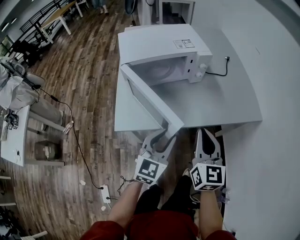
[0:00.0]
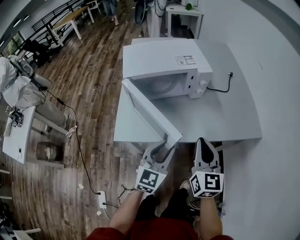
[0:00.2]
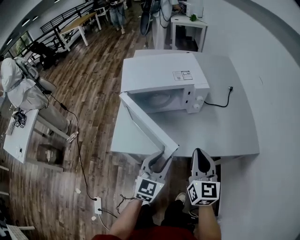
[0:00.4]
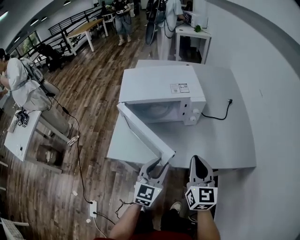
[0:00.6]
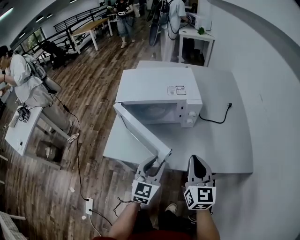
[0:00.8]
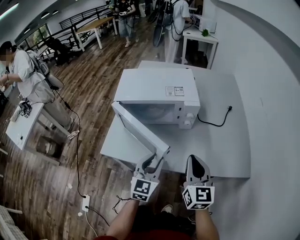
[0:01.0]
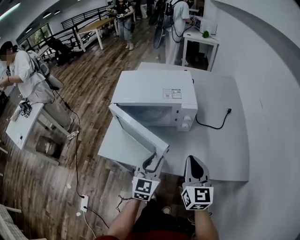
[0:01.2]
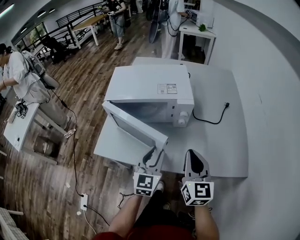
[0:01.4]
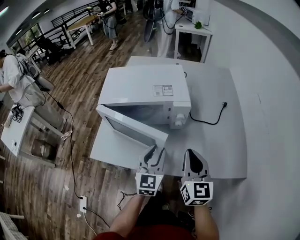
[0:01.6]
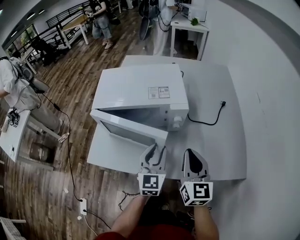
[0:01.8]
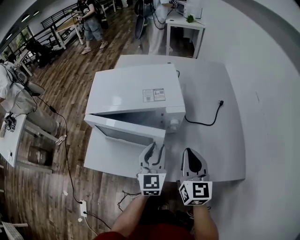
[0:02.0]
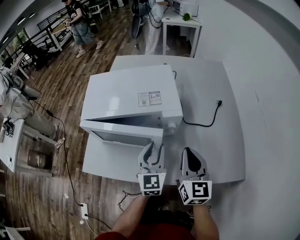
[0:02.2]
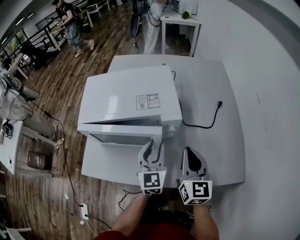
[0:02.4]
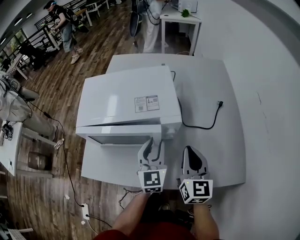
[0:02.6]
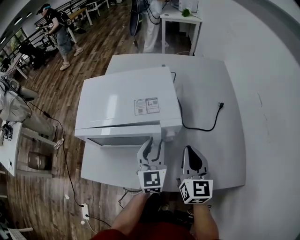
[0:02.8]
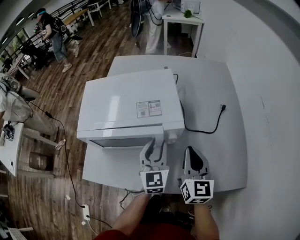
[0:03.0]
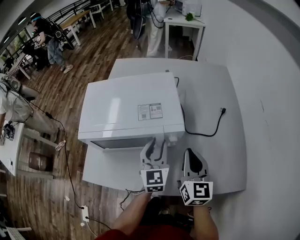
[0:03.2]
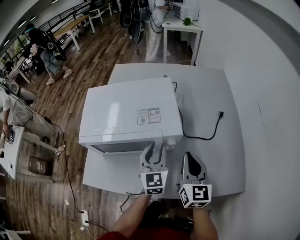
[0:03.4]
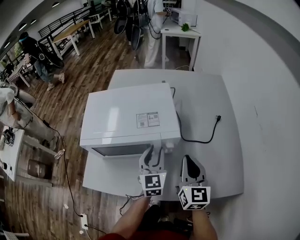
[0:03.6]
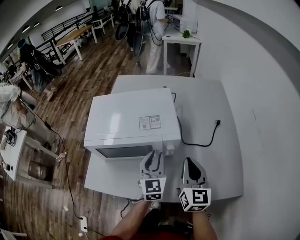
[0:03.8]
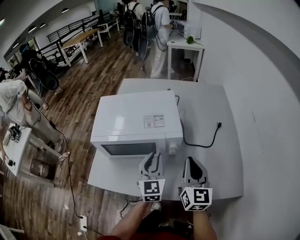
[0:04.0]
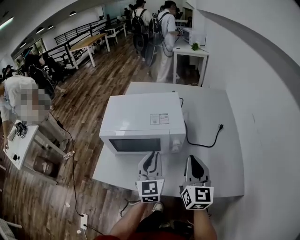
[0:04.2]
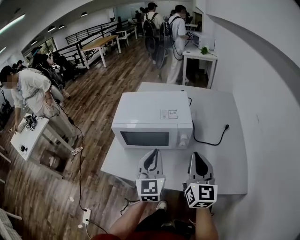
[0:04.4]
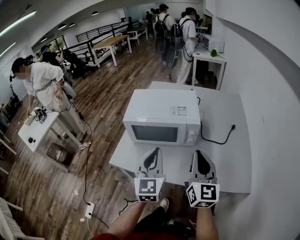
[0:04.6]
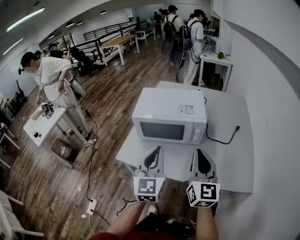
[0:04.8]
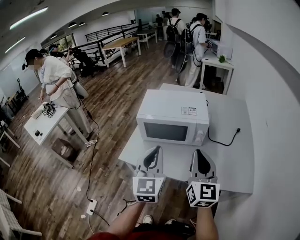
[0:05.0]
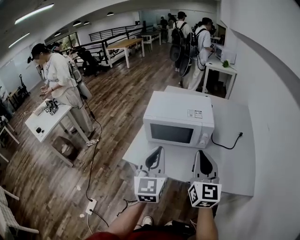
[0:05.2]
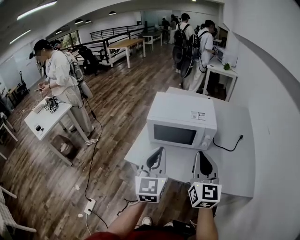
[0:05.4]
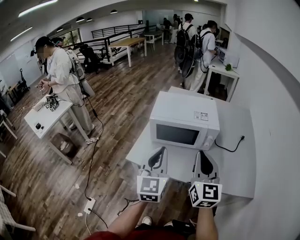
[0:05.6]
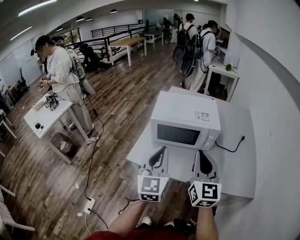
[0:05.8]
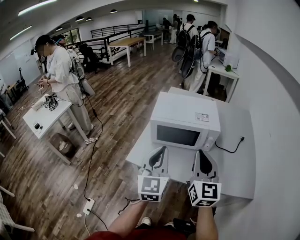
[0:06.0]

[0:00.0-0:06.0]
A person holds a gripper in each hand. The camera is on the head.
0:00.0 to 0:01.6: Both grippers travel together forward and to the right, roughly 20 cm. The left gripper swivels some 30 degrees.
0:01.6 to 0:03.0: Both grippers travel together forward, roughly 15 cm.
0:03.0 to 0:04.4: The left gripper goes some 20 cm backward, upward and to the left, and closes. Meanwhile the right gripper heads backward and upward, covering approximately 15 cm.
0:04.4 to 0:06.0: The left gripper is displaced to the left, backward and upward by roughly 20 cm; the right gripper shifts roughly 15 cm to the left.

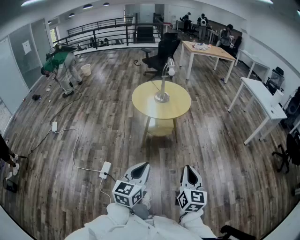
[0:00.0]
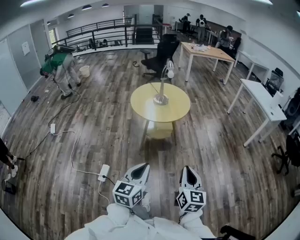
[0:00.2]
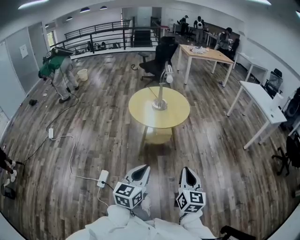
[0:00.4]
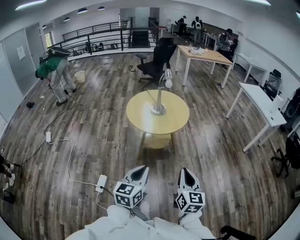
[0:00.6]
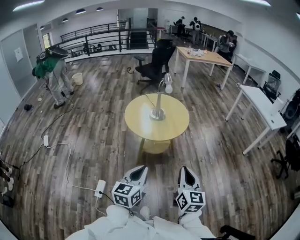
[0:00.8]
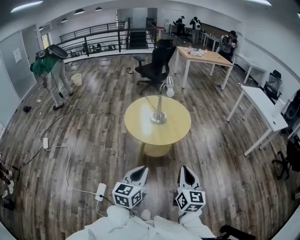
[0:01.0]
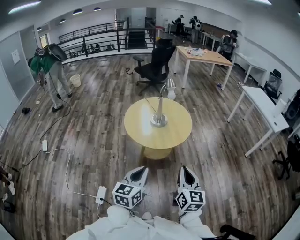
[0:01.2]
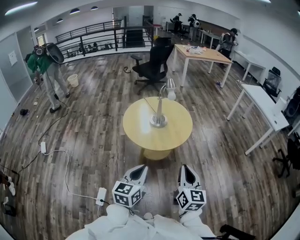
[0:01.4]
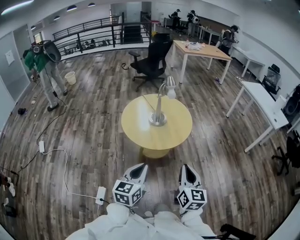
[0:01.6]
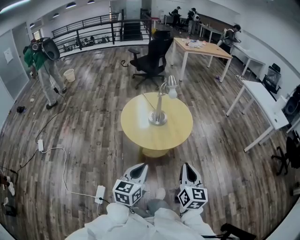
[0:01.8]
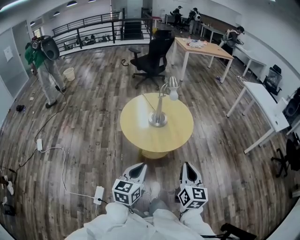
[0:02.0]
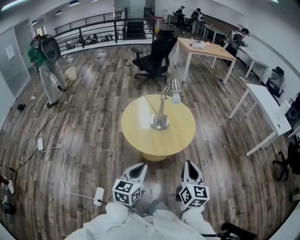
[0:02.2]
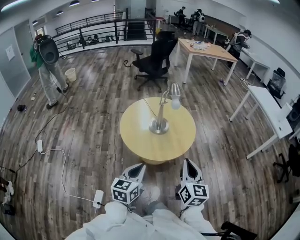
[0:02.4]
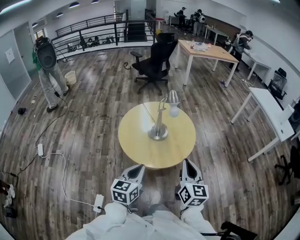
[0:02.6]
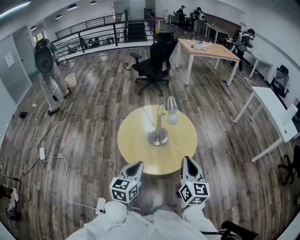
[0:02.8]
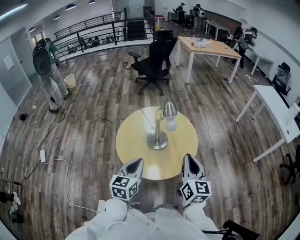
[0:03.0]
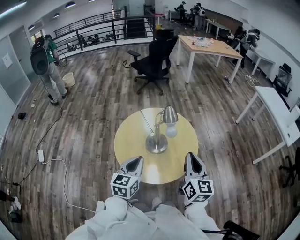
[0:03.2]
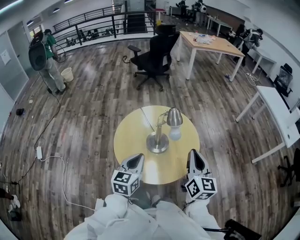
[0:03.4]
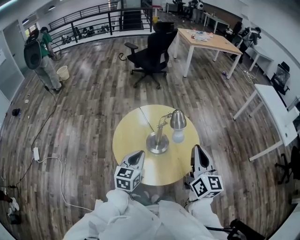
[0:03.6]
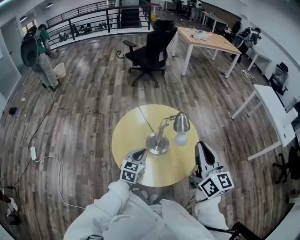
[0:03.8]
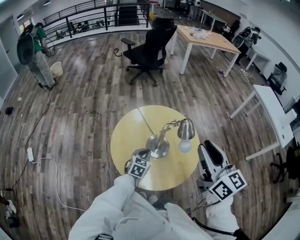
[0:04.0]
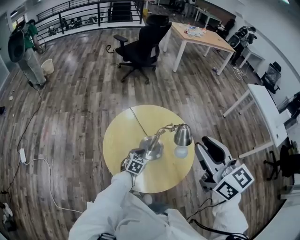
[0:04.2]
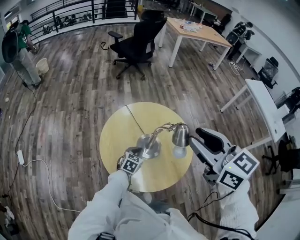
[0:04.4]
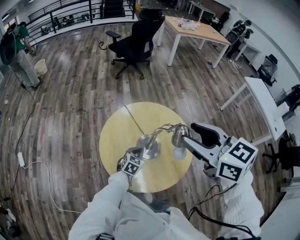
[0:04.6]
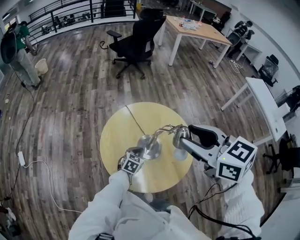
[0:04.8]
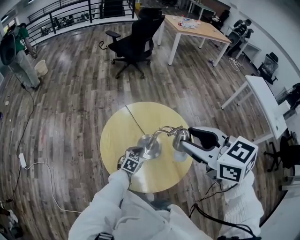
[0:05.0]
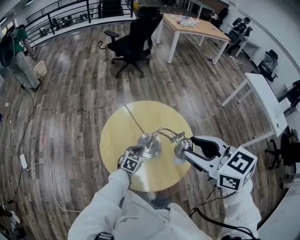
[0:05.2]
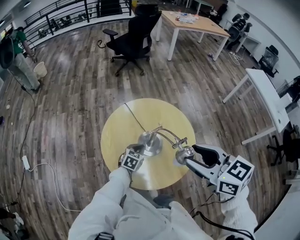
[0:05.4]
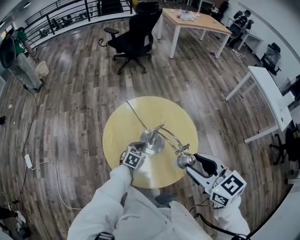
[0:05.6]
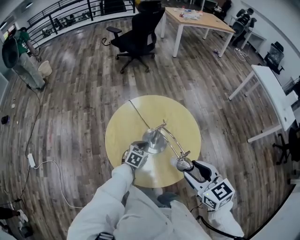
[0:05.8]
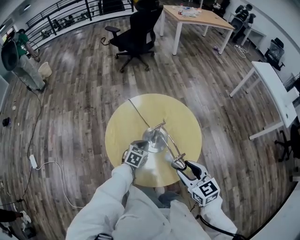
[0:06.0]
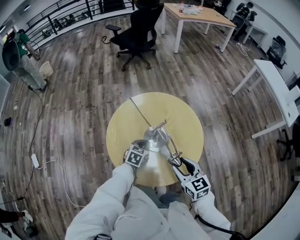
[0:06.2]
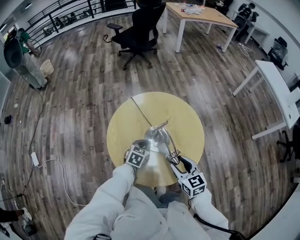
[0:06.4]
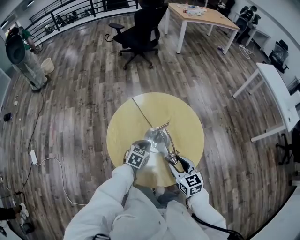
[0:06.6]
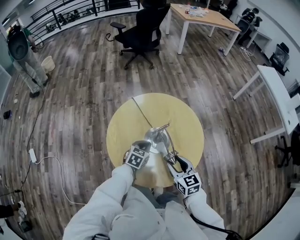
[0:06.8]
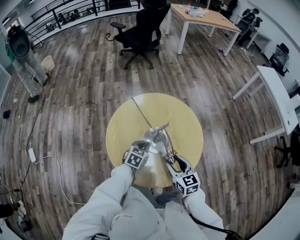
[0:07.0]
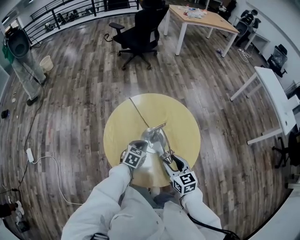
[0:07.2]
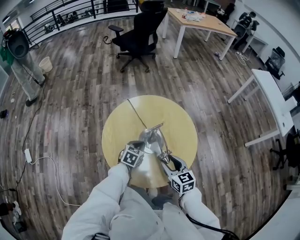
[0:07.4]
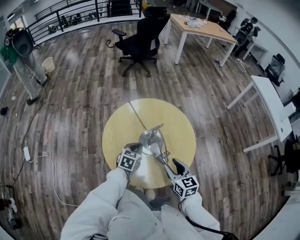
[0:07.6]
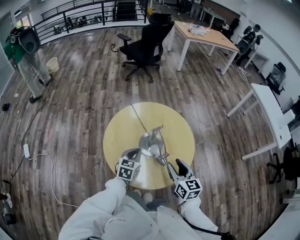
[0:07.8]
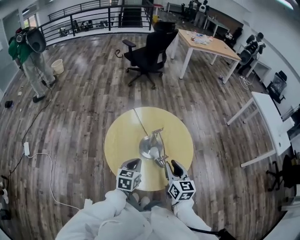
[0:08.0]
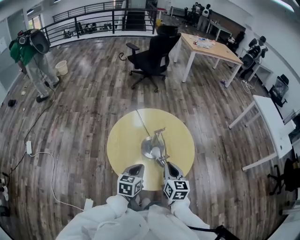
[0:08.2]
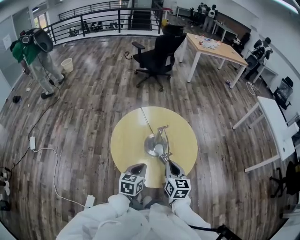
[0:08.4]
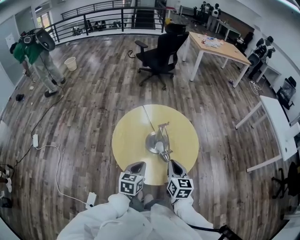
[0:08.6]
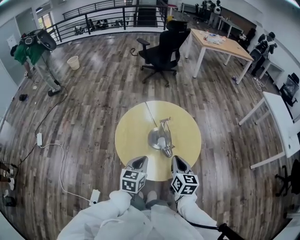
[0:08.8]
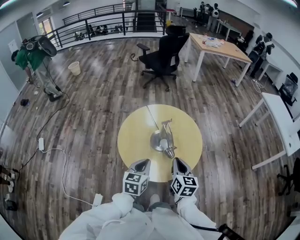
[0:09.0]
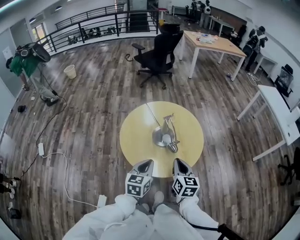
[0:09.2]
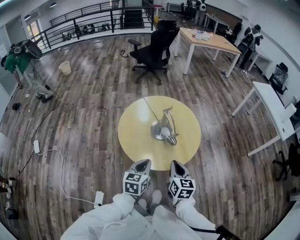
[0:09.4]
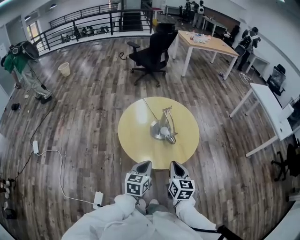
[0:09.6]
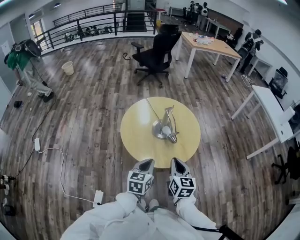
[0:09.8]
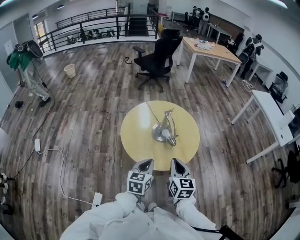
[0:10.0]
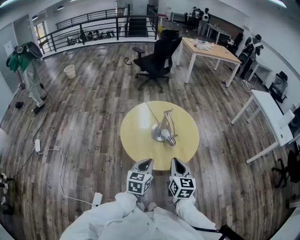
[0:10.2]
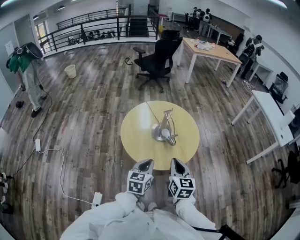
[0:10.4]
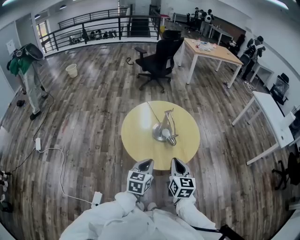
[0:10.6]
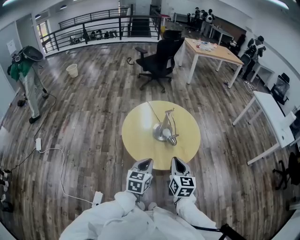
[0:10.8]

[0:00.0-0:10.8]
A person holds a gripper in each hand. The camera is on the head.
0:00.0 to 0:01.6: Both grippers travel together forward, roughly 30 cm.
0:01.6 to 0:03.0: The two grippers go about 30 cm forward.
0:03.0 to 0:04.6: The left gripper heads downward and forward, covering approximately 35 cm, and changes its angle by approximately 30 degrees. Meanwhile the right gripper is displaced forward, upward and to the left by some 25 cm, rotates approximately 40 degrees, and opens its fingers.
0:04.6 to 0:06.2: The right gripper is displaced downward by approximately 30 cm.
0:06.2 to 0:07.8: The left gripper shifts some 10 cm upward and backward.
0:07.8 to 0:09.2: The right gripper travels backward by roughly 10 cm, and closes up. Meanwhile the left gripper goes some 20 cm backward and upward.
0:09.2 to 0:10.8: The grippers both shift backward by roughly 5 cm.

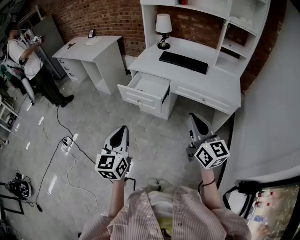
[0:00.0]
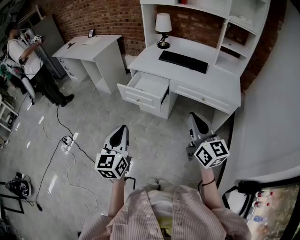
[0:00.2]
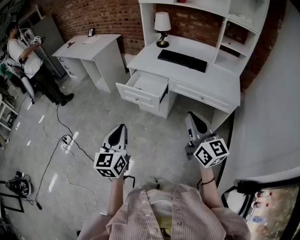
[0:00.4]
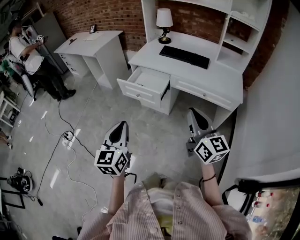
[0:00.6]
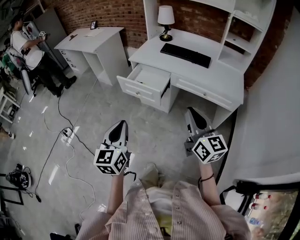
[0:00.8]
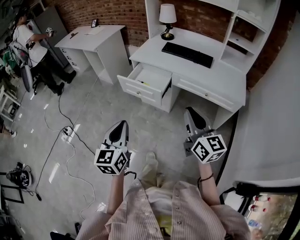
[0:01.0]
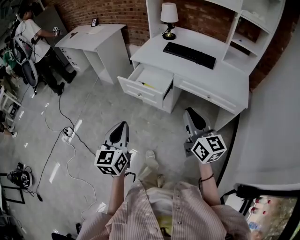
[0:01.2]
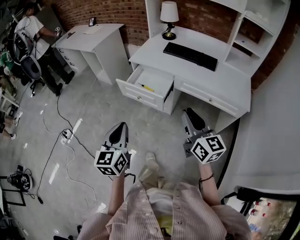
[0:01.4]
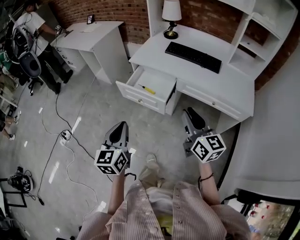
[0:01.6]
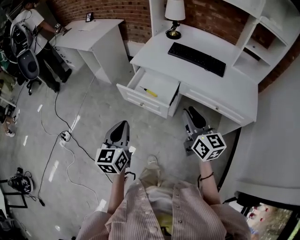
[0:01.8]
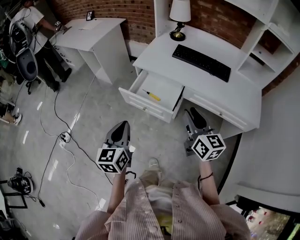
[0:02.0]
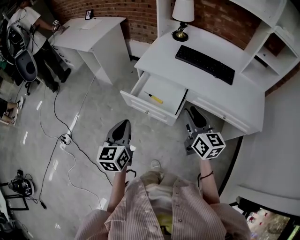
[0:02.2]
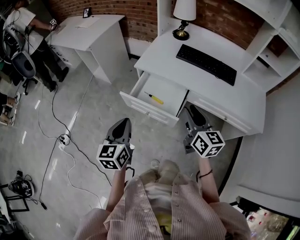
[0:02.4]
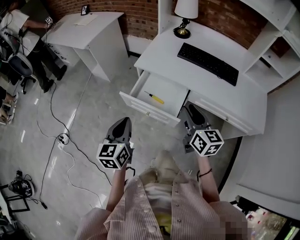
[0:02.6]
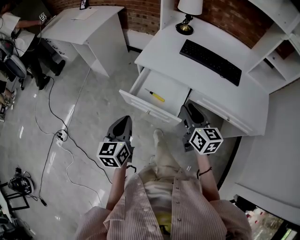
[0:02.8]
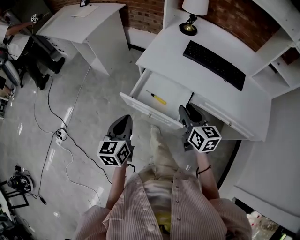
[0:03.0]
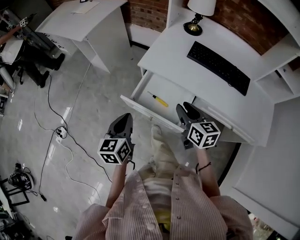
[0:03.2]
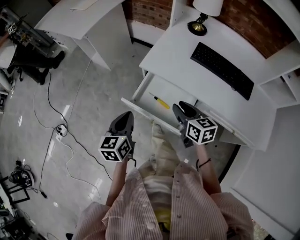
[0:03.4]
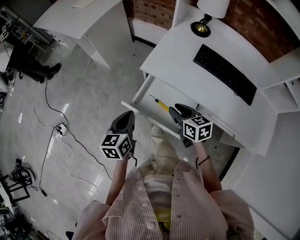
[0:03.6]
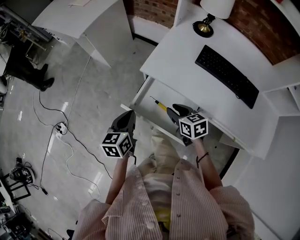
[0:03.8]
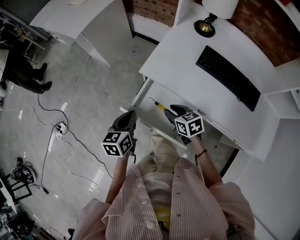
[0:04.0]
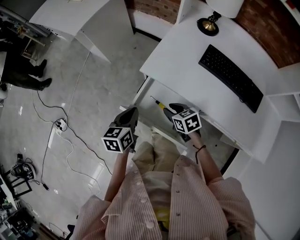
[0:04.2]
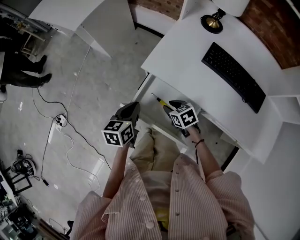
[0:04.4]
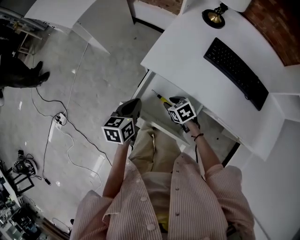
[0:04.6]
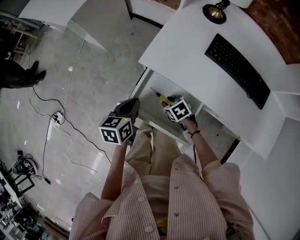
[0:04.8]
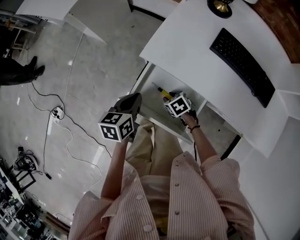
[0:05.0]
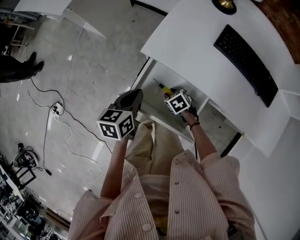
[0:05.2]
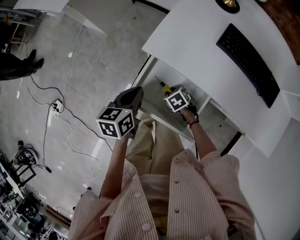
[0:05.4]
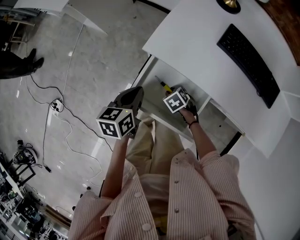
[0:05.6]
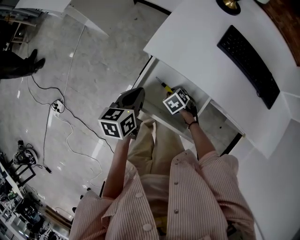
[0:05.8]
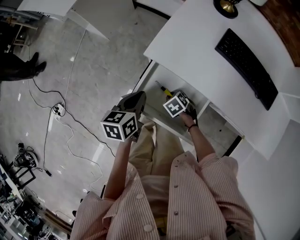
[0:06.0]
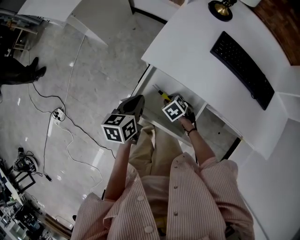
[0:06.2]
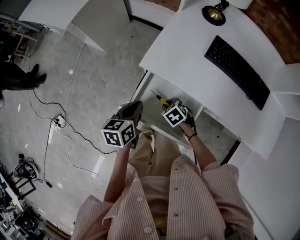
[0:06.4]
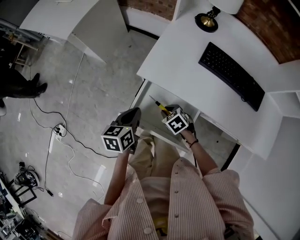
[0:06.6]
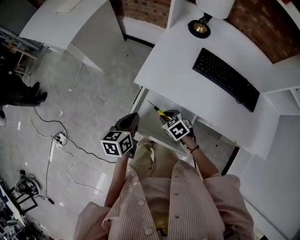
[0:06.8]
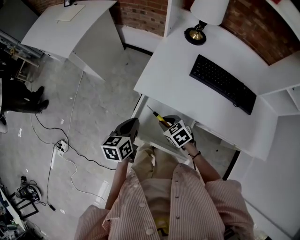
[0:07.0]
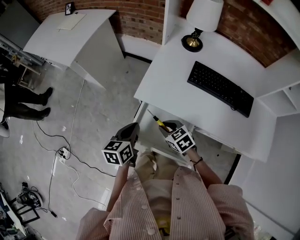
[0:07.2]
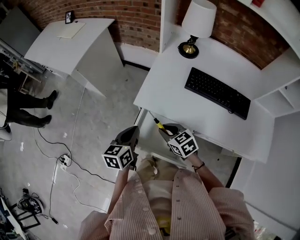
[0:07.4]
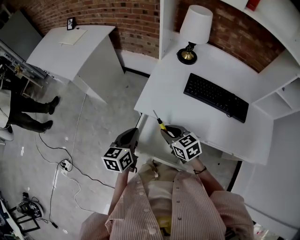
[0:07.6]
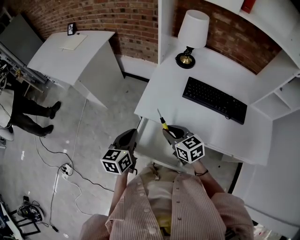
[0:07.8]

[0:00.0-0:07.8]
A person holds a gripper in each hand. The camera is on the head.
0:00.0 to 0:01.6: Both grippers travel together forward and downward, about 15 cm.
0:01.6 to 0:03.2: The left gripper heads forward, covering some 30 cm, while the right gripper is displaced forward and downward by about 30 cm, and changes its angle by approximately 20 degrees.
0:03.2 to 0:04.6: The left gripper is displaced forward and downward by approximately 15 cm. Meanwhile the right gripper moves downward and forward, approximately 25 cm, and points its fingers about 40 degrees further downward.
0:04.6 to 0:06.2: The right gripper goes about 5 cm downward.
0:06.2 to 0:07.8: The left gripper moves upward, some 15 cm, and turns by roughly 20 degrees. Meanwhile the right gripper is displaced upward by about 25 cm, and tips its fingers upward by approximately 40 degrees.
